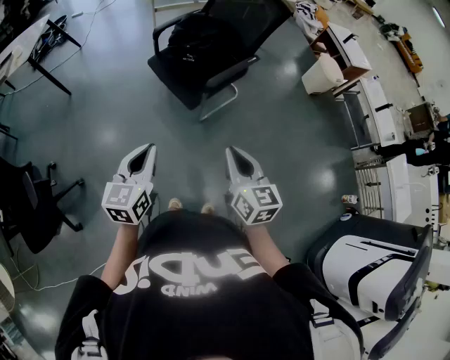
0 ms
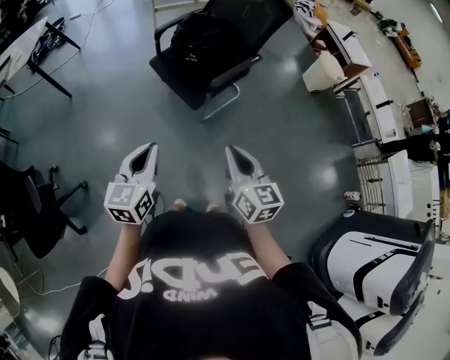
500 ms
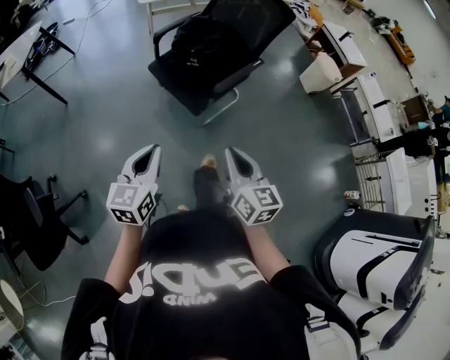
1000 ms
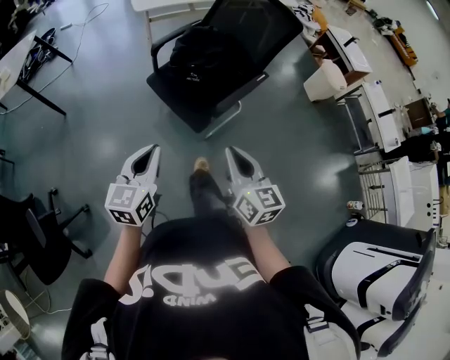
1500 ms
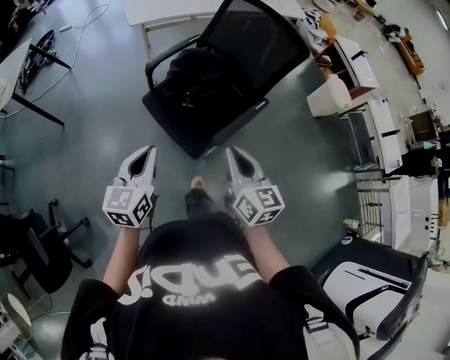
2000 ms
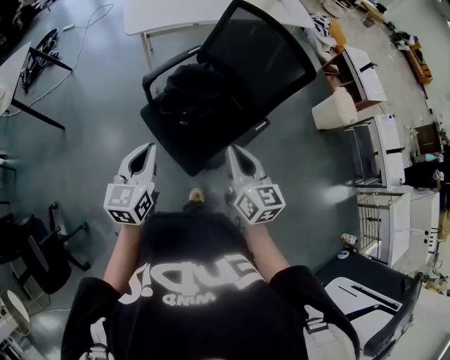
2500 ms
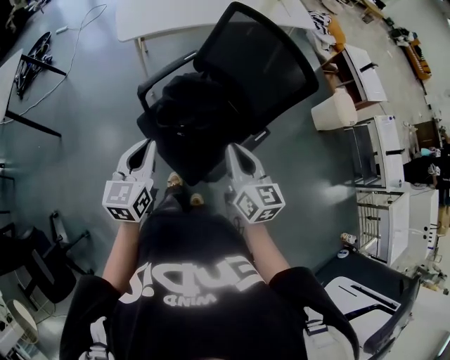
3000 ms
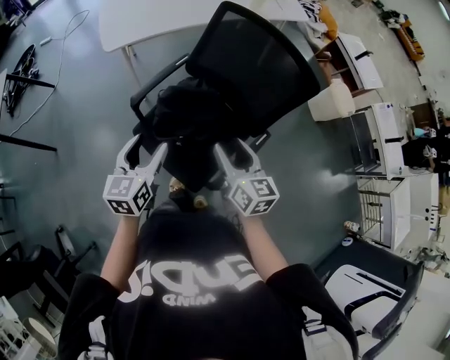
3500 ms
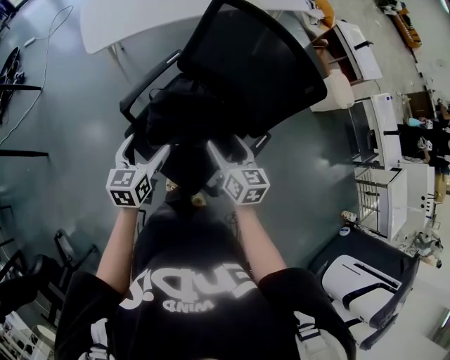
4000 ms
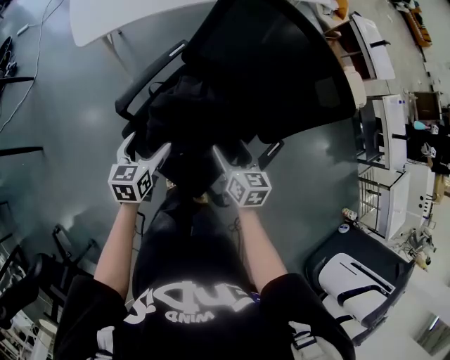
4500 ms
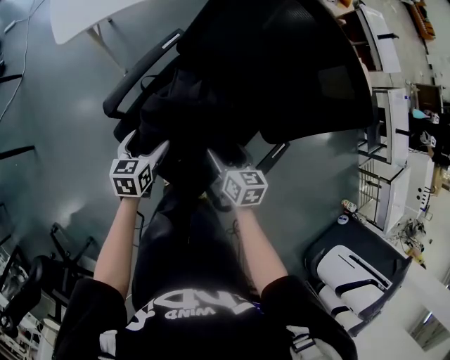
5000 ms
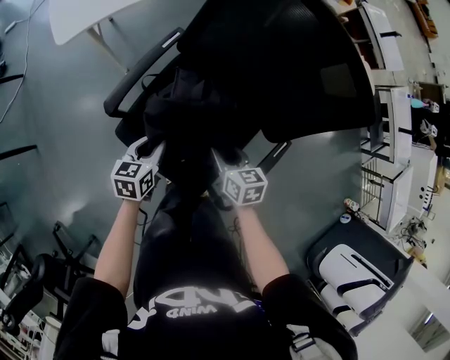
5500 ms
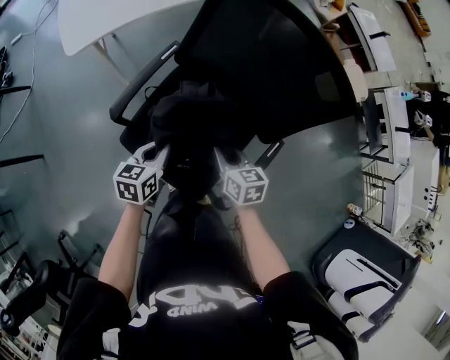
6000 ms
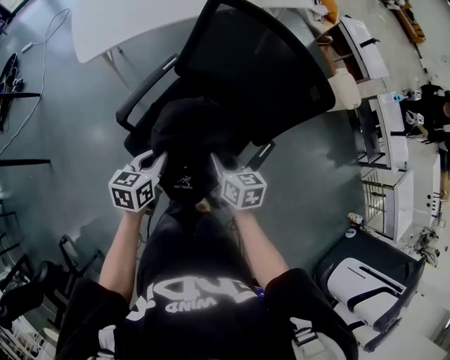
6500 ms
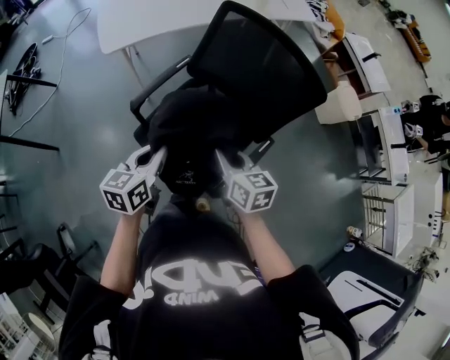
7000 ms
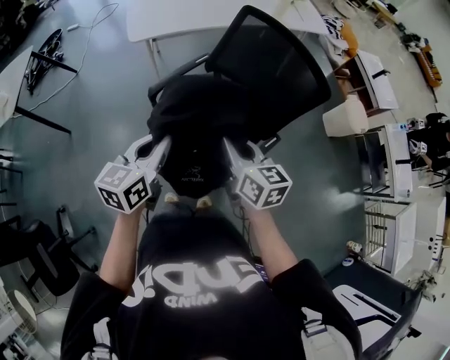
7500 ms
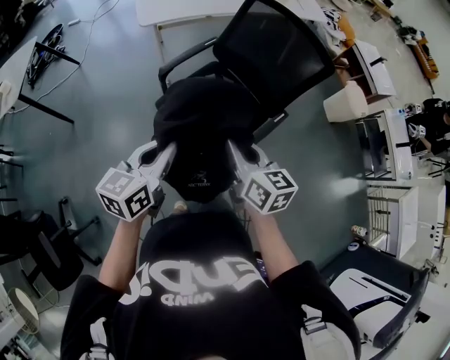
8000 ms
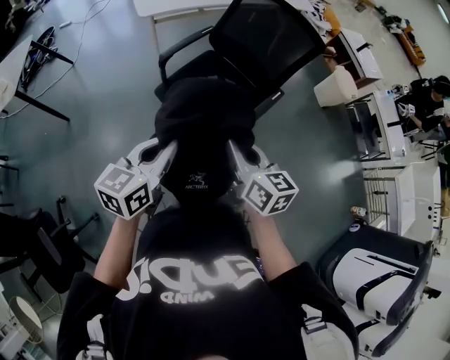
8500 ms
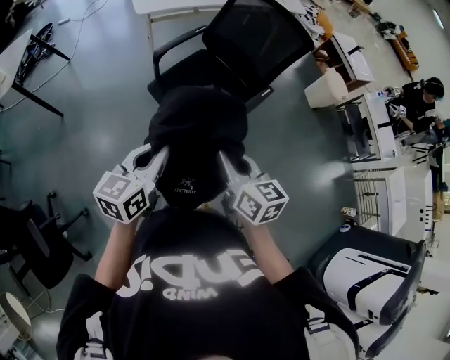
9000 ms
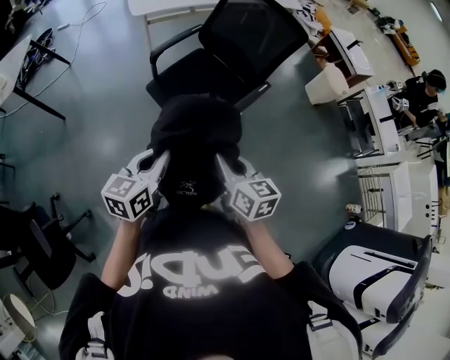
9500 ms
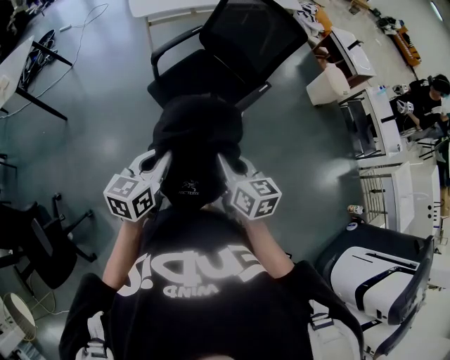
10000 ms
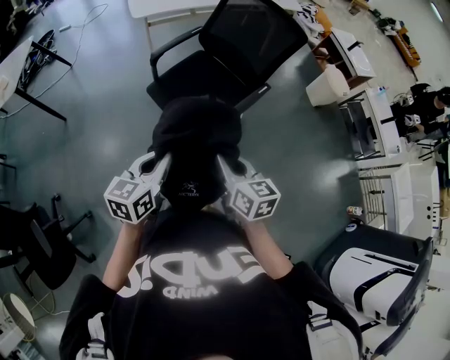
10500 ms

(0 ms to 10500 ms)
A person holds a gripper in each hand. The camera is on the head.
0 ms - 2000 ms: The two grippers go some 35 cm forward.
2000 ms - 4000 ms: The two grippers go some 35 cm forward. The left gripper opens up; the right gripper opens.
4000 ms - 6500 ms: The right gripper reaches some 20 cm downward, then returns, and closes its fingers. The left gripper moves some 20 cm downward and comes back, and closes.
6500 ms - 8500 ms: The grippers both shift backward and upward by roughly 50 cm.
8500 ms - 10500 ms: The right gripper travels backward by about 10 cm, while the left gripper heads backward and downward, covering some 10 cm.

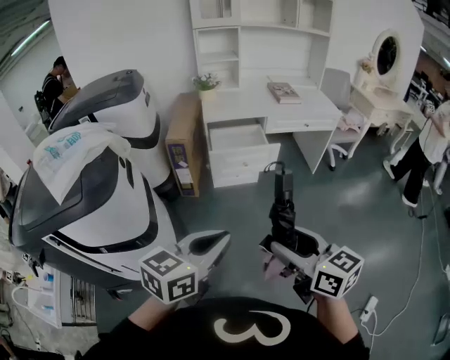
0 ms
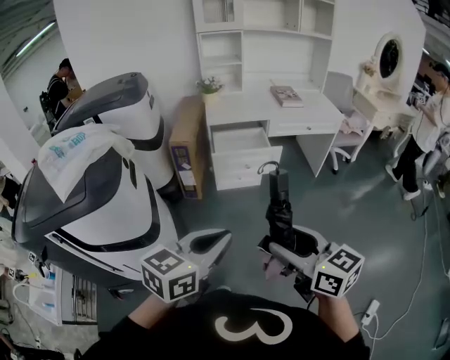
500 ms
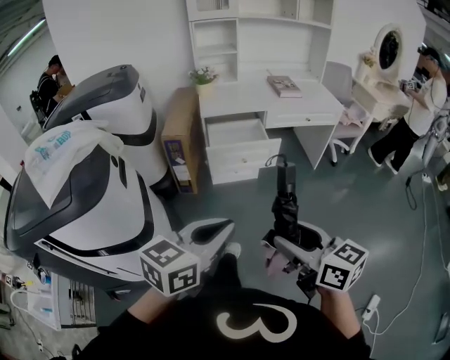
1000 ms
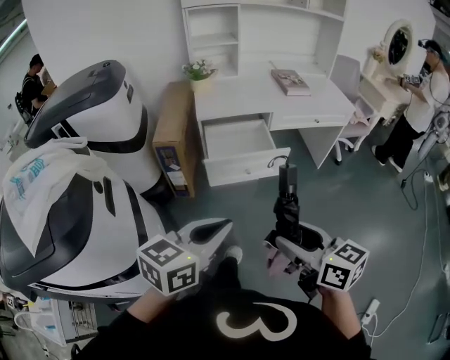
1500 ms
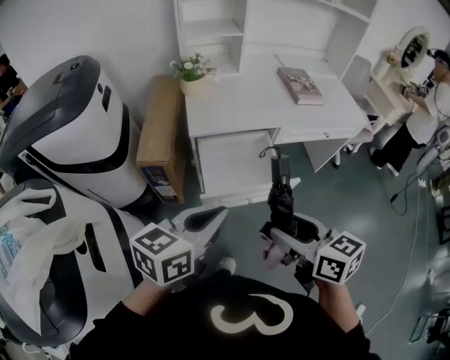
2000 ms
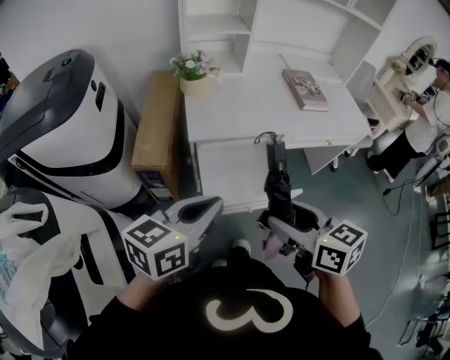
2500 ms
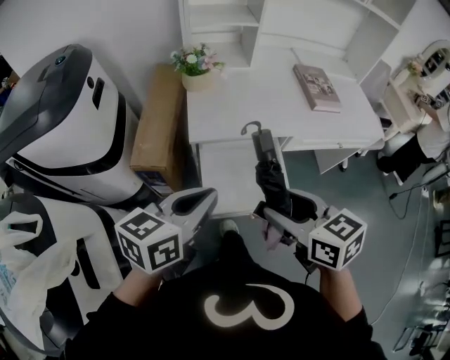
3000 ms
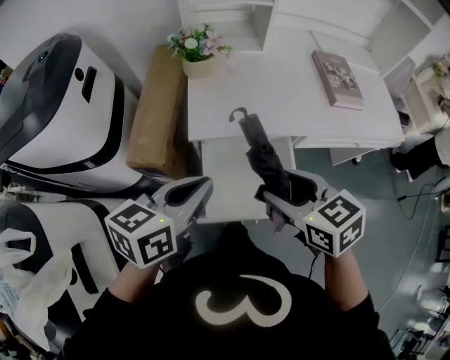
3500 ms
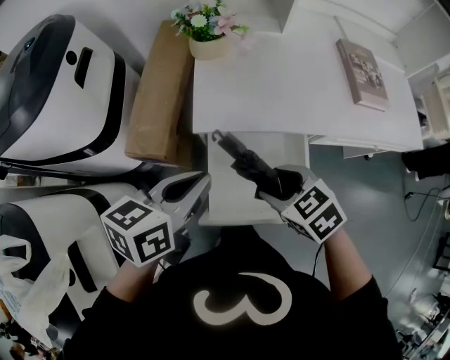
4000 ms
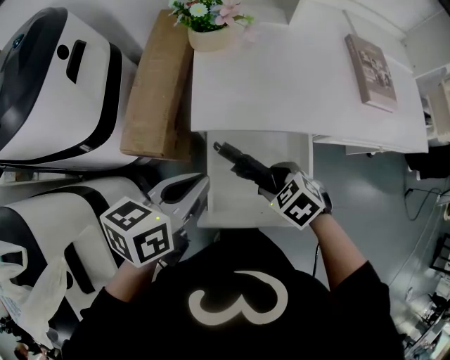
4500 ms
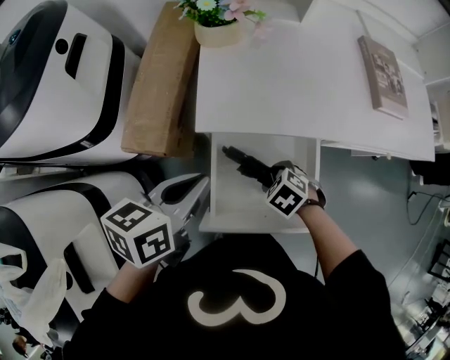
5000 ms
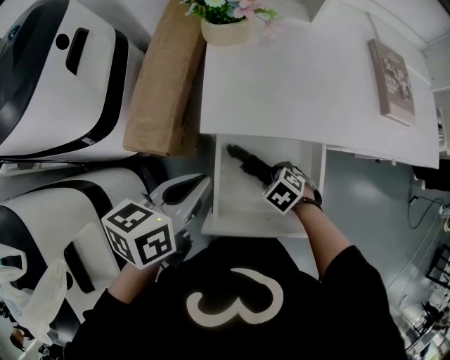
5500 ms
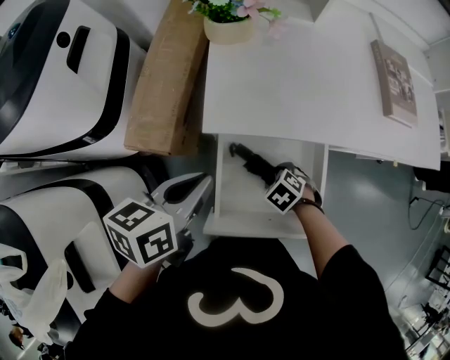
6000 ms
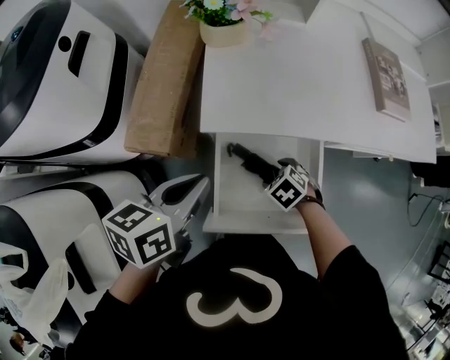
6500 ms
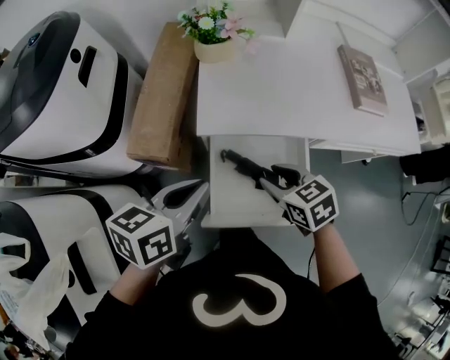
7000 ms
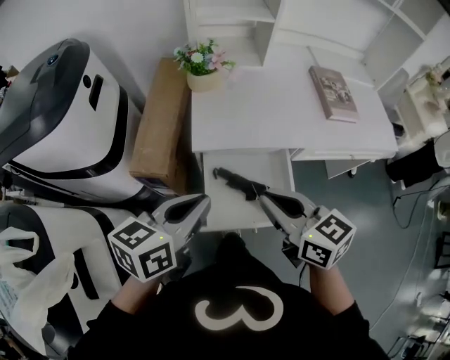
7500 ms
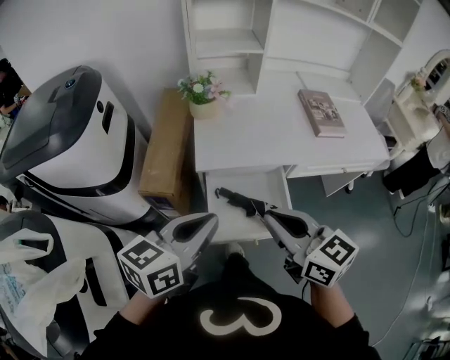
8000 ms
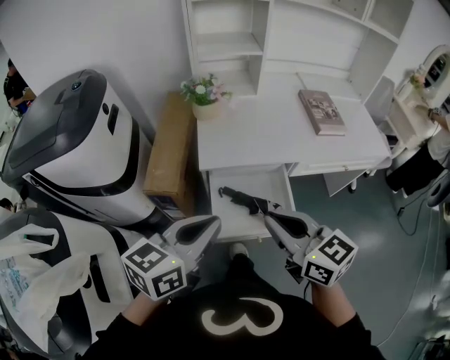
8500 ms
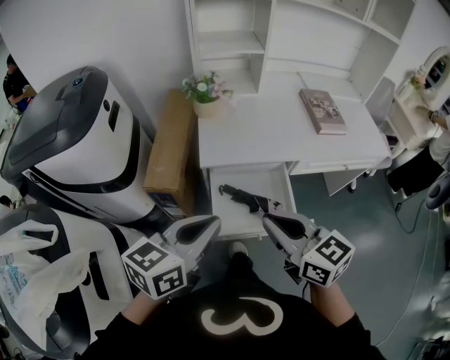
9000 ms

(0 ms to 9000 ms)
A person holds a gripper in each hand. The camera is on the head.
0 ms - 2000 ms: The pair of grippers is taken forward, approximately 40 cm.
2000 ms - 4500 ms: The two grippers go some 35 cm forward and downward. The left gripper changes its angle by about 20 degrees. Meanwhile the right gripper points its fingers about 40 degrees further downward.
4500 ms - 7000 ms: The right gripper moves about 15 cm downward and comes back, and turns by some 30 degrees.
7000 ms - 9000 ms: The right gripper shifts some 25 cm upward and backward, tips its fingers upward by approximately 30 degrees, and closes its fingers. Meanwhile the left gripper moves backward and upward, some 20 cm, and turns by approximately 20 degrees.

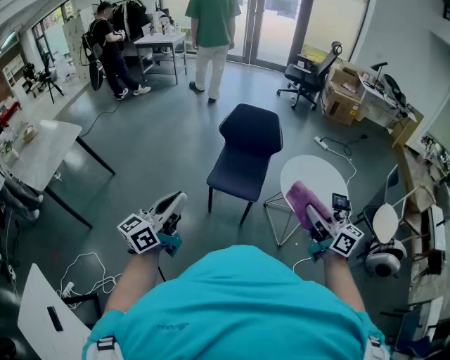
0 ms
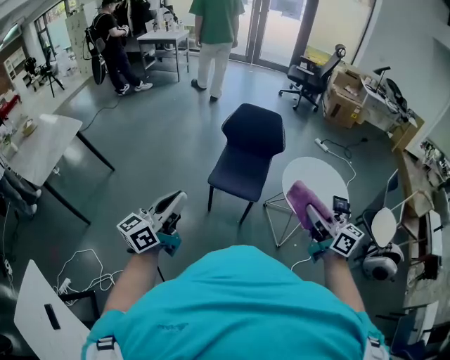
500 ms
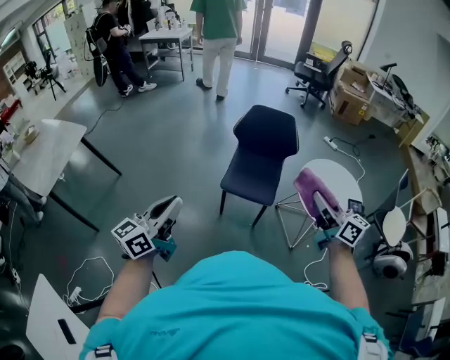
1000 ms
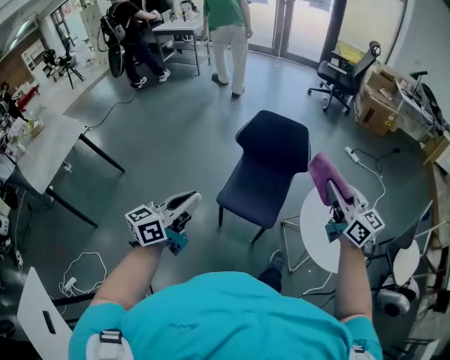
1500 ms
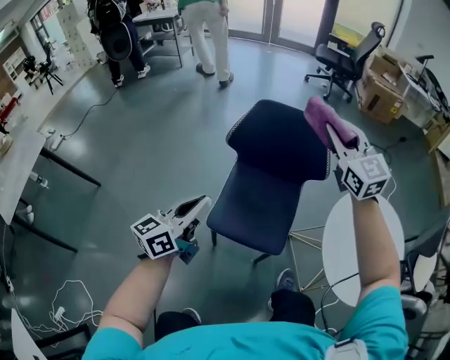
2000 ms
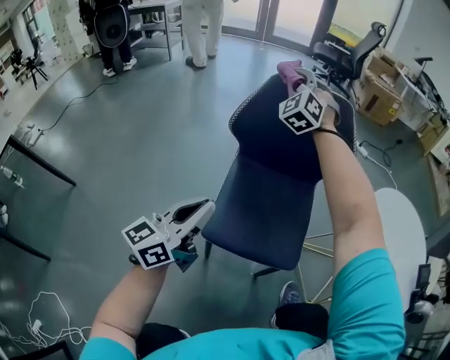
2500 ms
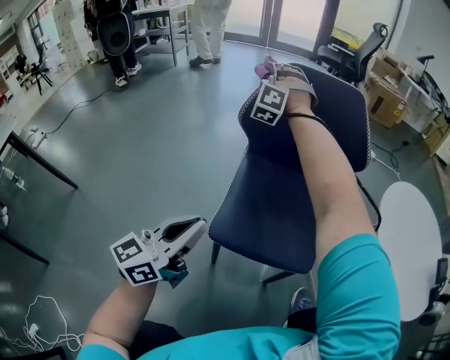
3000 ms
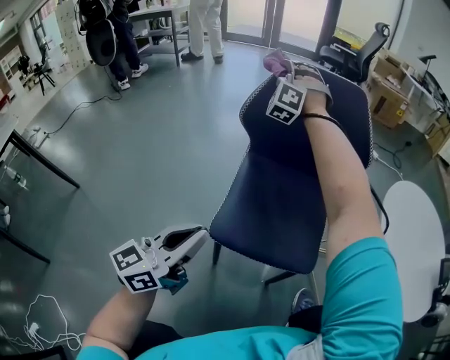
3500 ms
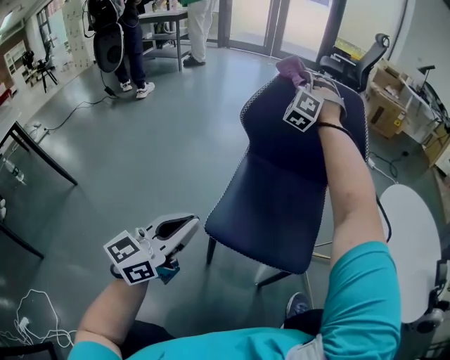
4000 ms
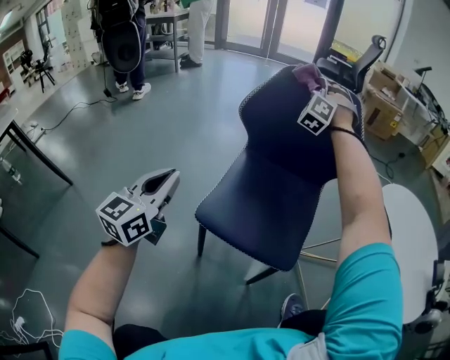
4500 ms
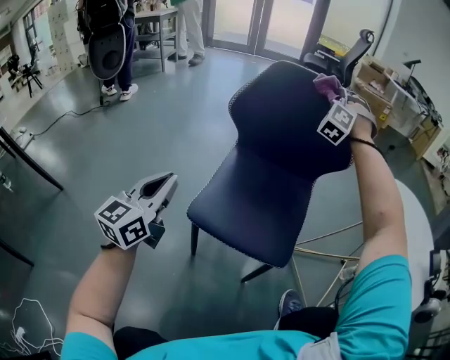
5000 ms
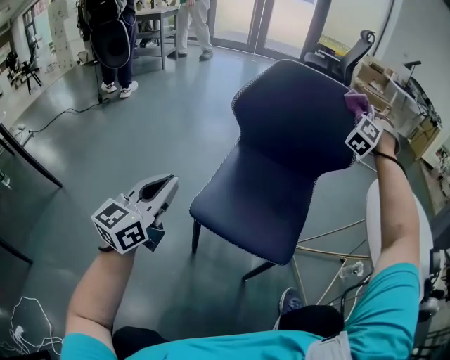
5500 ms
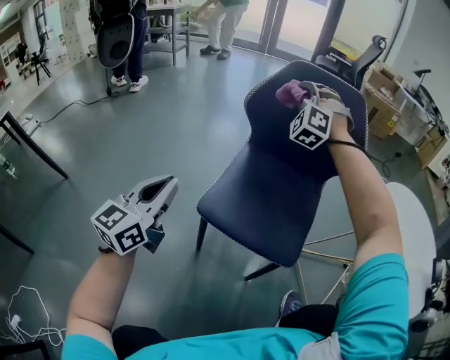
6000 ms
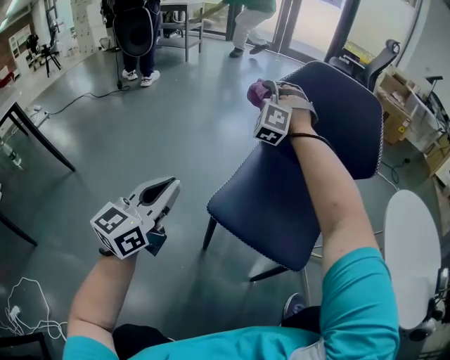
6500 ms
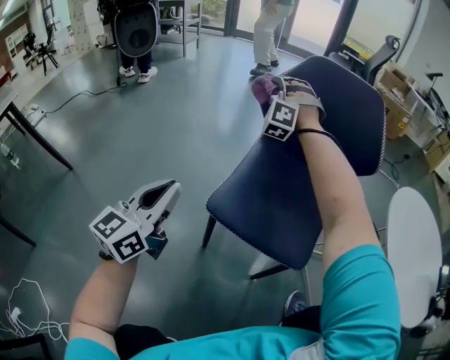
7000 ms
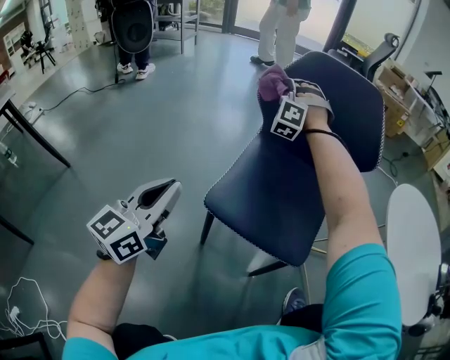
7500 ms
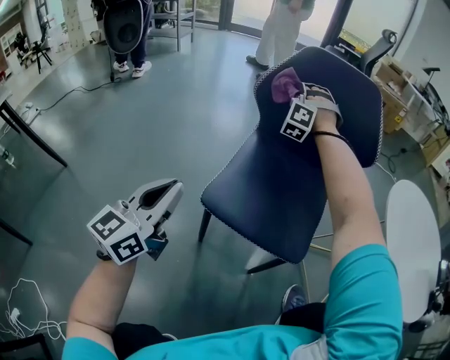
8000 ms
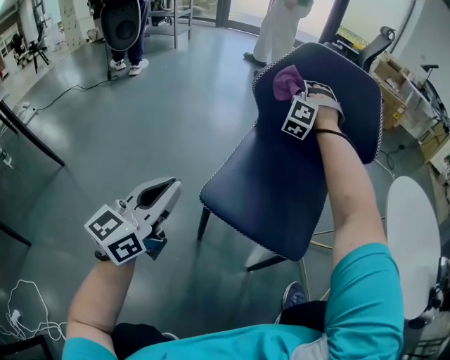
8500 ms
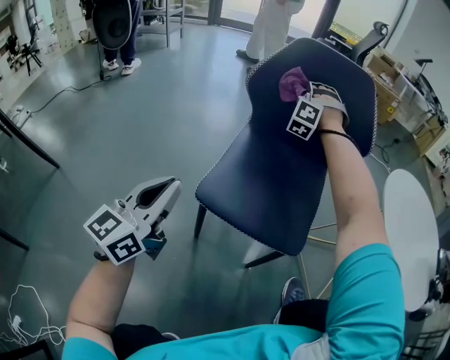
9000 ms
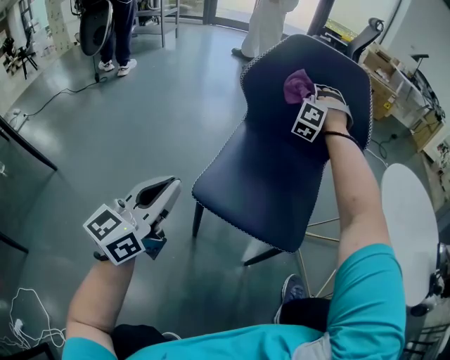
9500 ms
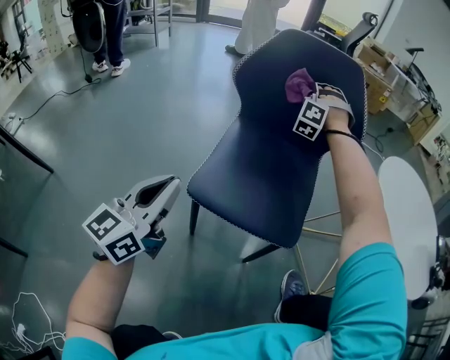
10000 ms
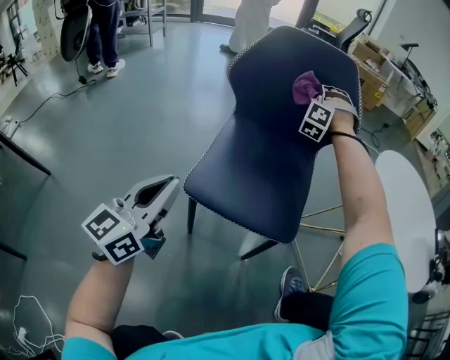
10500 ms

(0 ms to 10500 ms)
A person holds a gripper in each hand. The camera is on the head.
0 ms - 2000 ms: The left gripper shifts by some 50 cm.
2000 ms - 4000 ms: The left gripper moves downward, roughly 20 cm.
4000 ms - 6500 ms: The left gripper changes place by some 10 cm.
